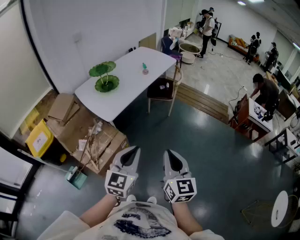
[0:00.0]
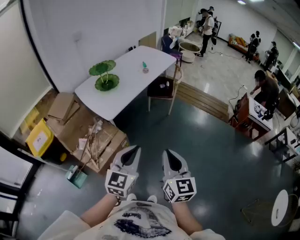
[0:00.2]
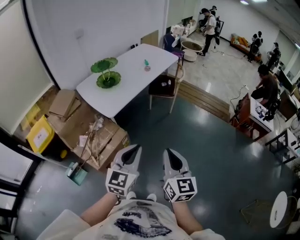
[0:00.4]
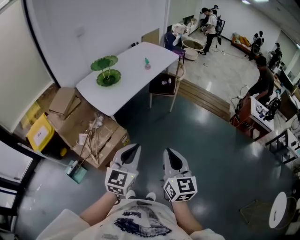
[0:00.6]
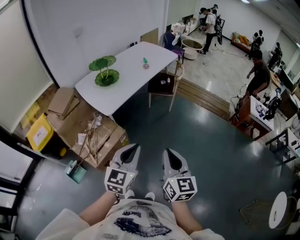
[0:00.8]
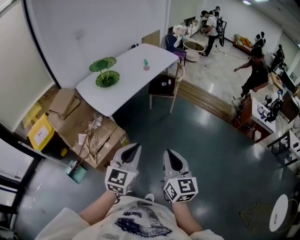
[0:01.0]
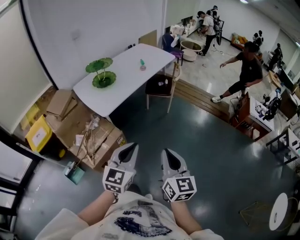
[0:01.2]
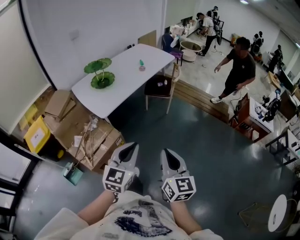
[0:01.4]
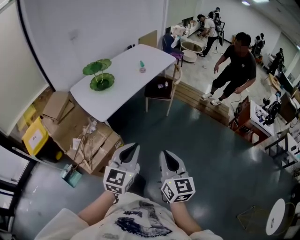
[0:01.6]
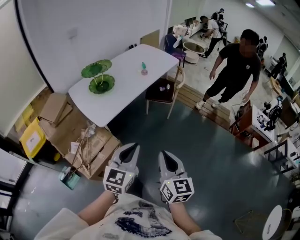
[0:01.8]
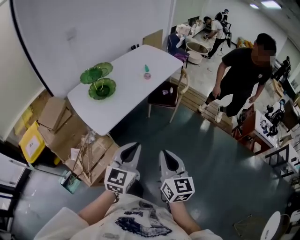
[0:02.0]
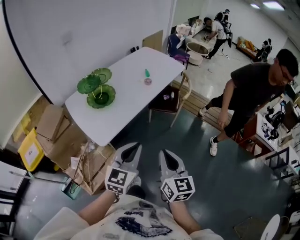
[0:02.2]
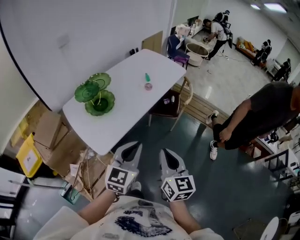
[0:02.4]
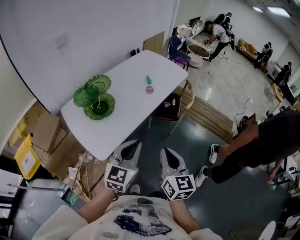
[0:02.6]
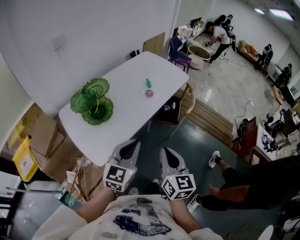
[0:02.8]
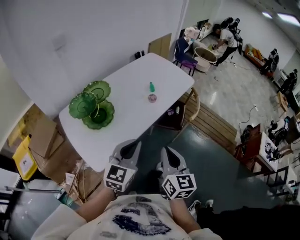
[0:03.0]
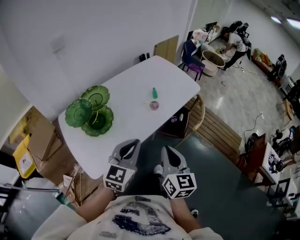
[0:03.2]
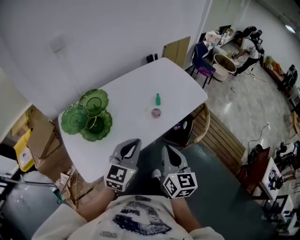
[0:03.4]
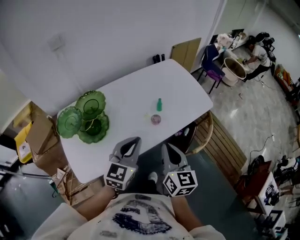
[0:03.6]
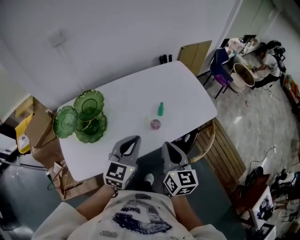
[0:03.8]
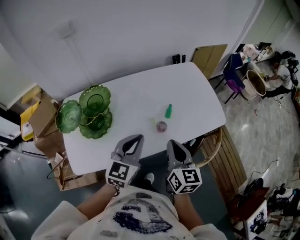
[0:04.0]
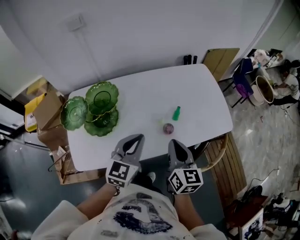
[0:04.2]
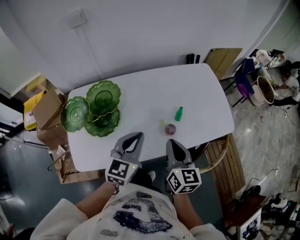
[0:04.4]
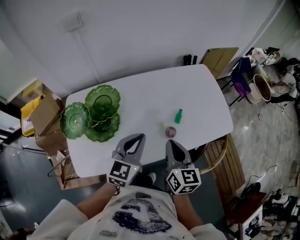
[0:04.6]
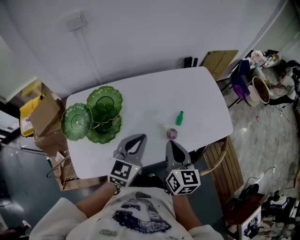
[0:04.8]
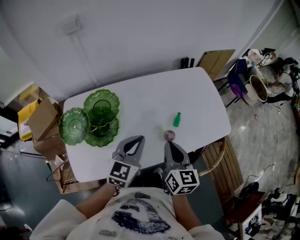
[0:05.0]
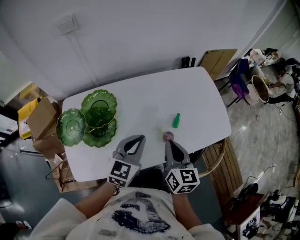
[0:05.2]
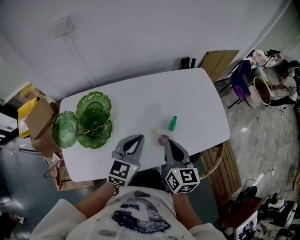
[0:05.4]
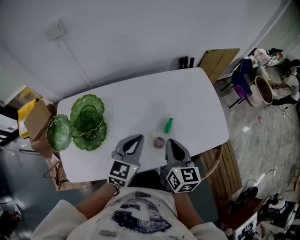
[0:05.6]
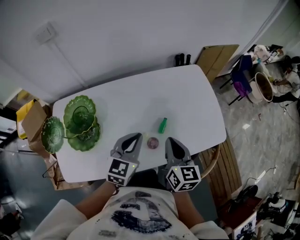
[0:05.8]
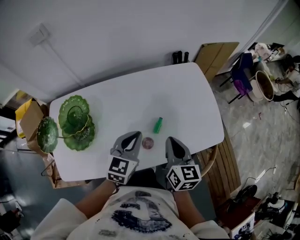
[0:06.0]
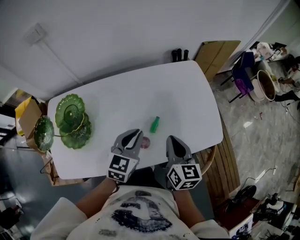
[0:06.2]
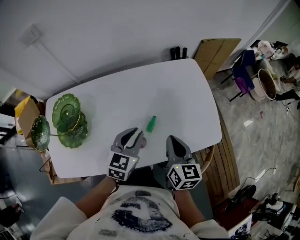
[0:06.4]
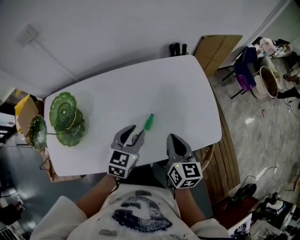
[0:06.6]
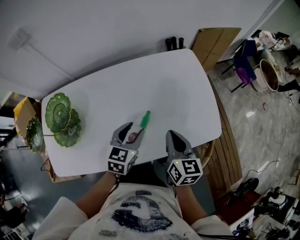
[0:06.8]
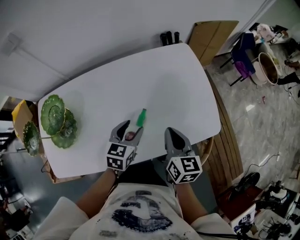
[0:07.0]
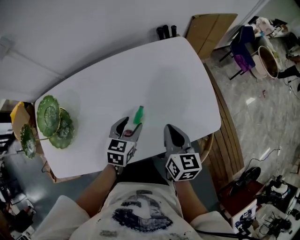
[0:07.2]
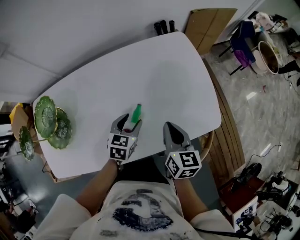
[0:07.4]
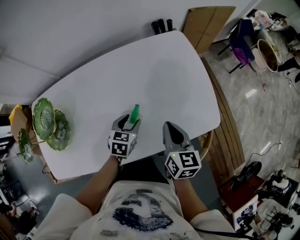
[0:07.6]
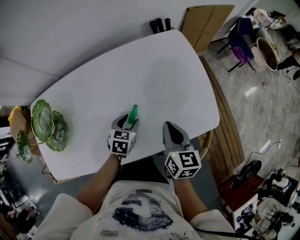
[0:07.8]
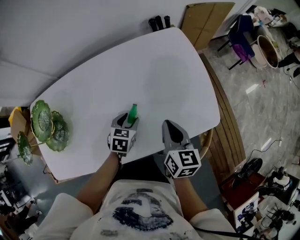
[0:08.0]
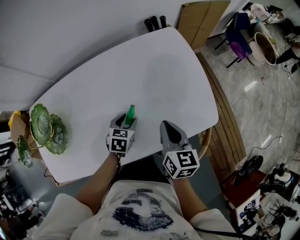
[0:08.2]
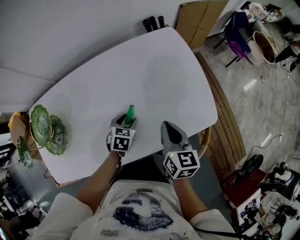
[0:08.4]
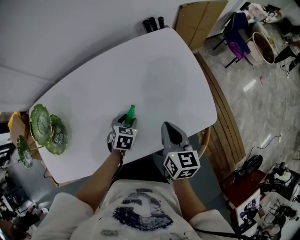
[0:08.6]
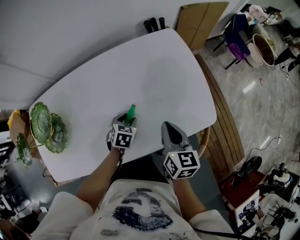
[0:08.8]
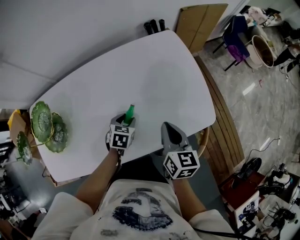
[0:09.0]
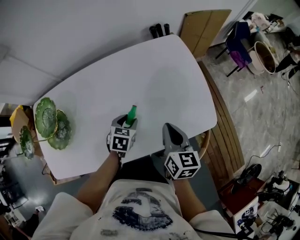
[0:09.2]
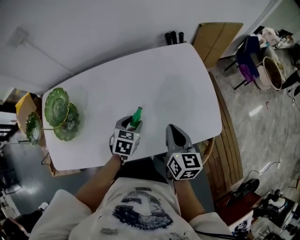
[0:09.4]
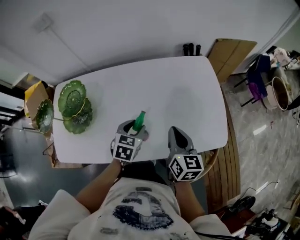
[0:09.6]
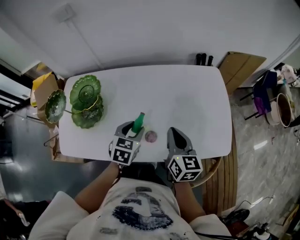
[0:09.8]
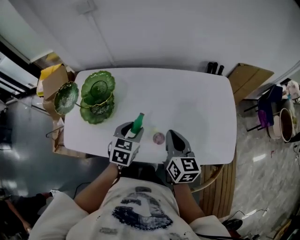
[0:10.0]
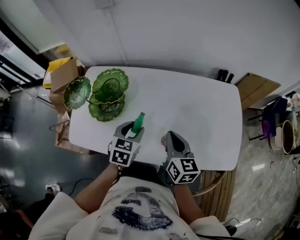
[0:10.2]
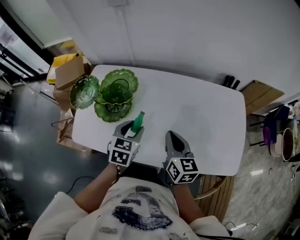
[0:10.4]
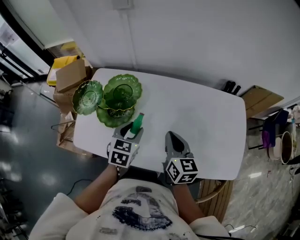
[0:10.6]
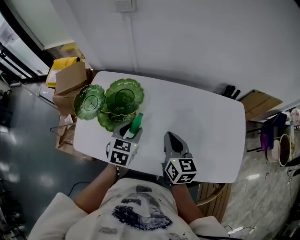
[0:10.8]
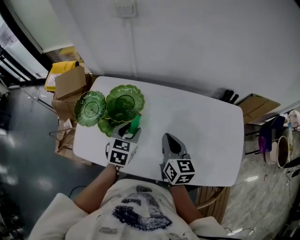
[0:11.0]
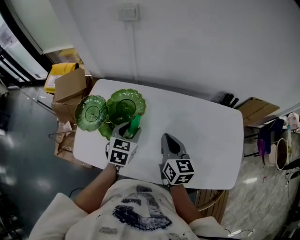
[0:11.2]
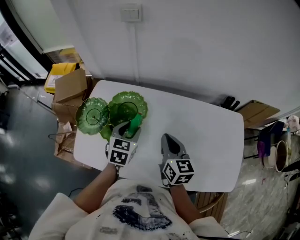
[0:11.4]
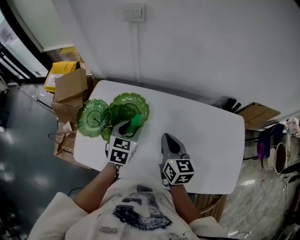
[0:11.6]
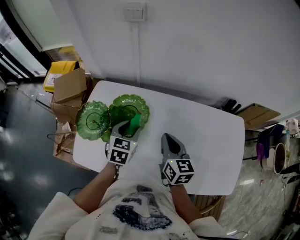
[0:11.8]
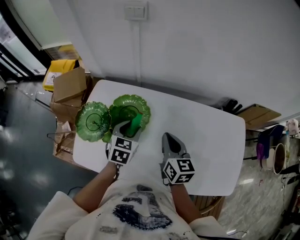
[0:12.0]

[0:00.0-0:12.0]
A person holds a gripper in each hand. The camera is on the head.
0:00.0 to 0:01.6: The left gripper travels forward by approximately 5 cm; the right gripper moves approximately 5 cm.
0:01.6 to 0:03.0: The two grippers travel together, forward, roughly 40 cm.
0:03.0 to 0:04.4: The left gripper moves approximately 30 cm, and rotates about 30 degrees, while the right gripper shifts by roughly 35 cm, and swivels about 30 degrees.
0:04.4 to 0:06.0: The left gripper travels forward, to the right and downward by some 15 cm, while the right gripper travels forward and to the right by roughly 15 cm.
0:06.0 to 0:07.6: The right gripper travels to the right and downward by approximately 15 cm. Meanwhile the left gripper travels downward and to the right by about 20 cm, changes its angle by some 30 degrees, and opens its fingers.
0:07.6 to 0:09.0: The grippers move only a little.
0:09.0 to 0:10.4: The right gripper ends up approximately 30 cm from where it was, and turns by some 30 degrees. Meanwhile the left gripper ends up some 30 cm from where it was, and turns by roughly 30 degrees.
0:10.4 to 0:12.0: Both grippers travel together forward and to the left, some 15 cm.

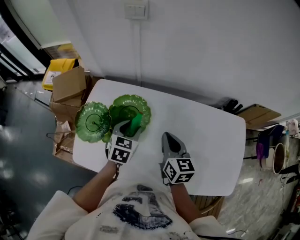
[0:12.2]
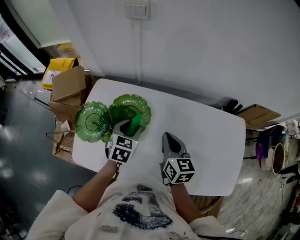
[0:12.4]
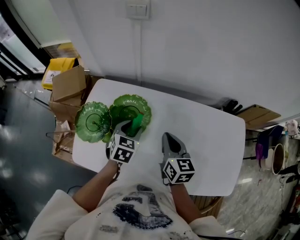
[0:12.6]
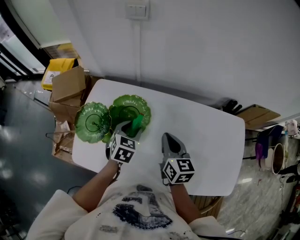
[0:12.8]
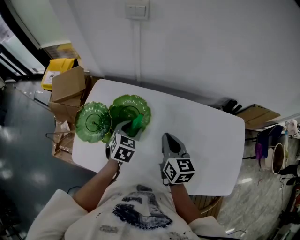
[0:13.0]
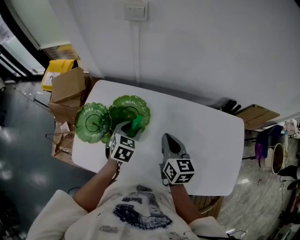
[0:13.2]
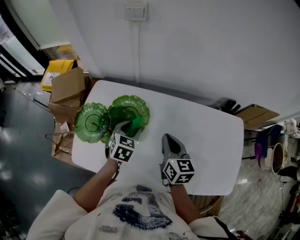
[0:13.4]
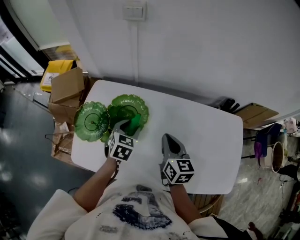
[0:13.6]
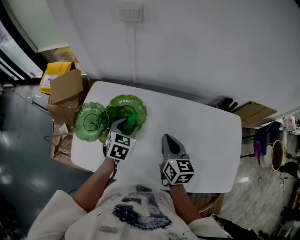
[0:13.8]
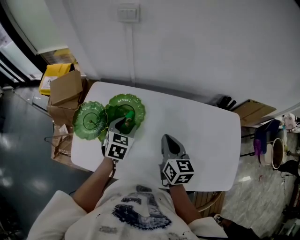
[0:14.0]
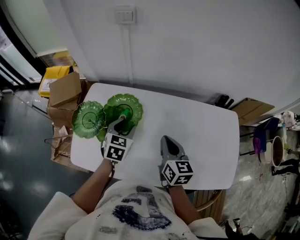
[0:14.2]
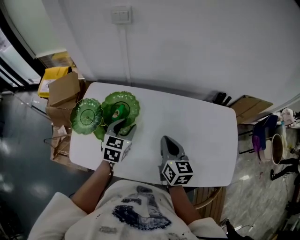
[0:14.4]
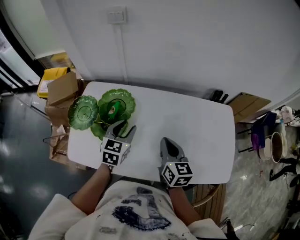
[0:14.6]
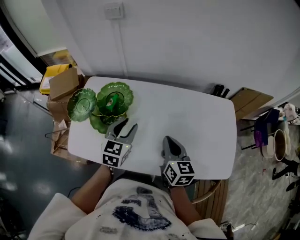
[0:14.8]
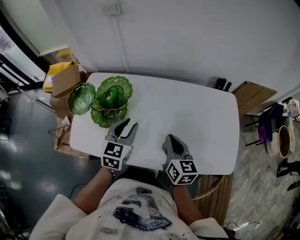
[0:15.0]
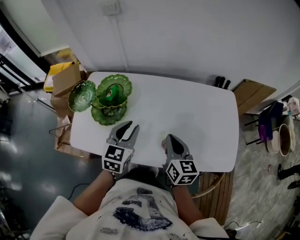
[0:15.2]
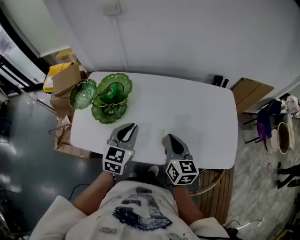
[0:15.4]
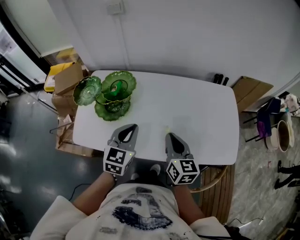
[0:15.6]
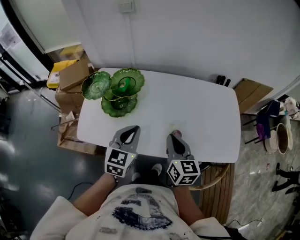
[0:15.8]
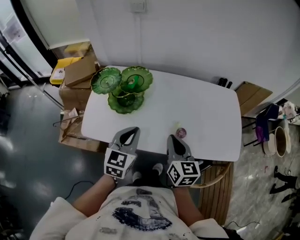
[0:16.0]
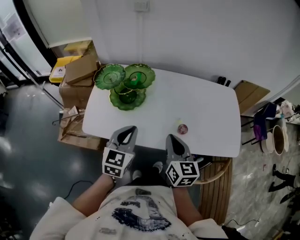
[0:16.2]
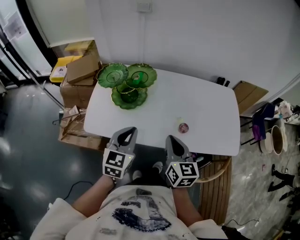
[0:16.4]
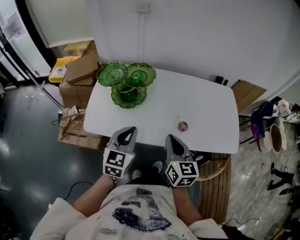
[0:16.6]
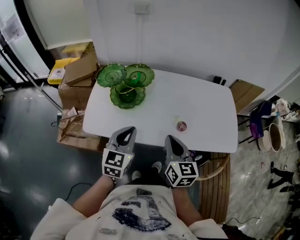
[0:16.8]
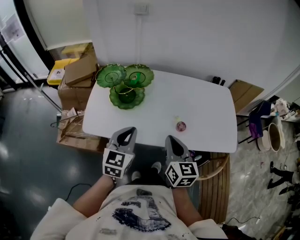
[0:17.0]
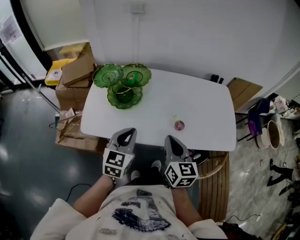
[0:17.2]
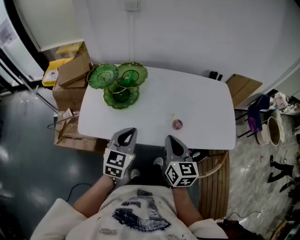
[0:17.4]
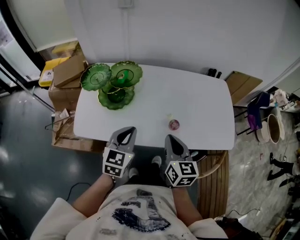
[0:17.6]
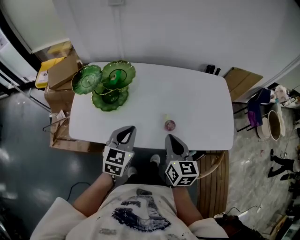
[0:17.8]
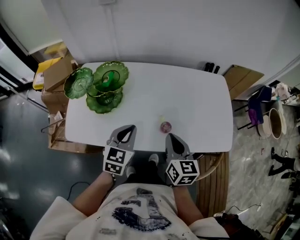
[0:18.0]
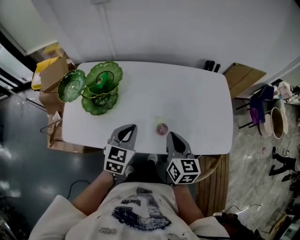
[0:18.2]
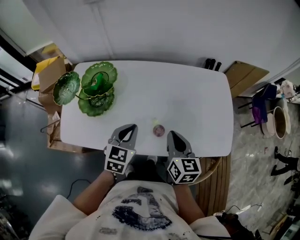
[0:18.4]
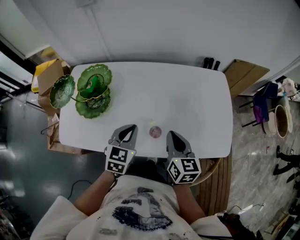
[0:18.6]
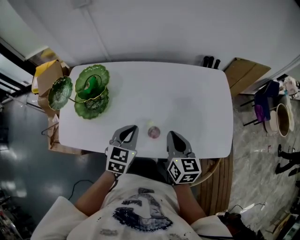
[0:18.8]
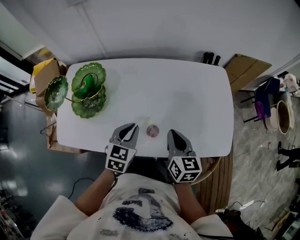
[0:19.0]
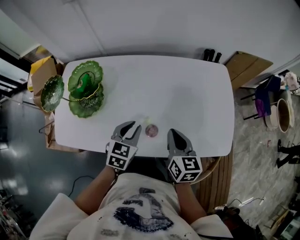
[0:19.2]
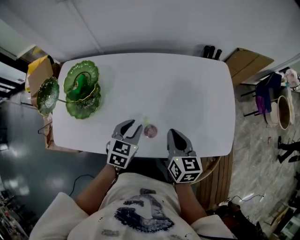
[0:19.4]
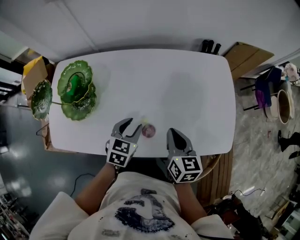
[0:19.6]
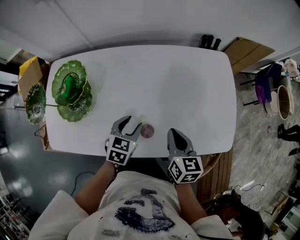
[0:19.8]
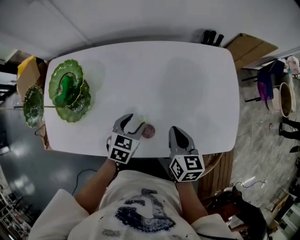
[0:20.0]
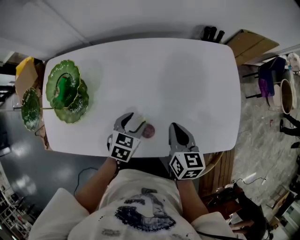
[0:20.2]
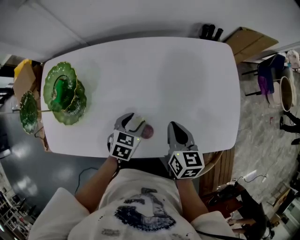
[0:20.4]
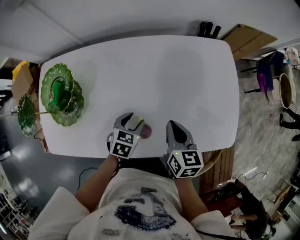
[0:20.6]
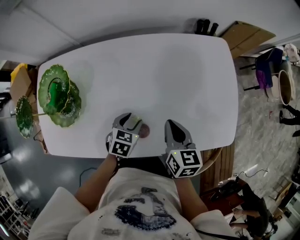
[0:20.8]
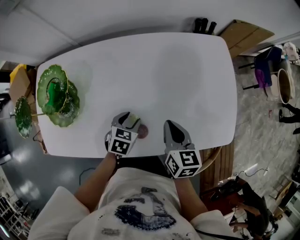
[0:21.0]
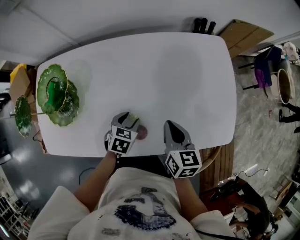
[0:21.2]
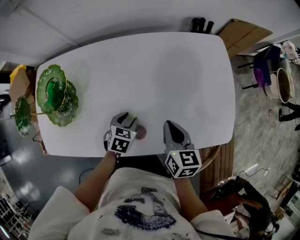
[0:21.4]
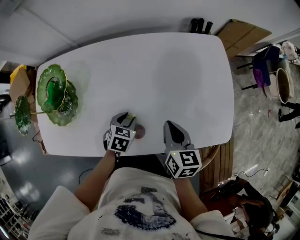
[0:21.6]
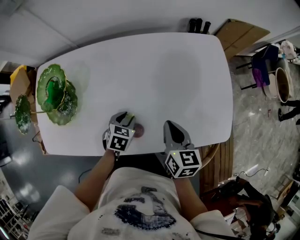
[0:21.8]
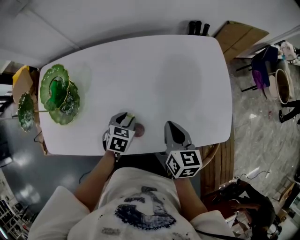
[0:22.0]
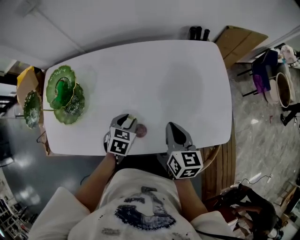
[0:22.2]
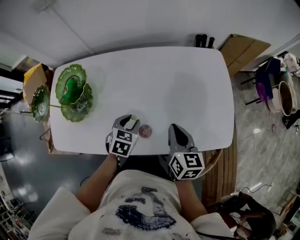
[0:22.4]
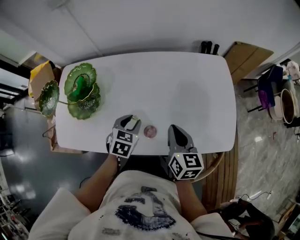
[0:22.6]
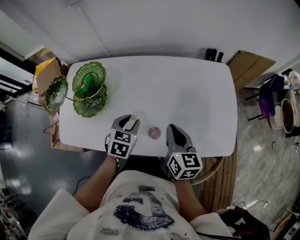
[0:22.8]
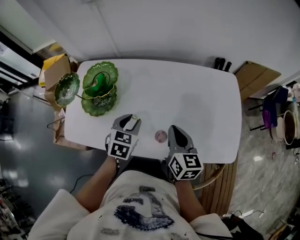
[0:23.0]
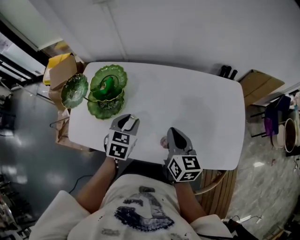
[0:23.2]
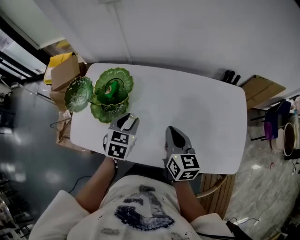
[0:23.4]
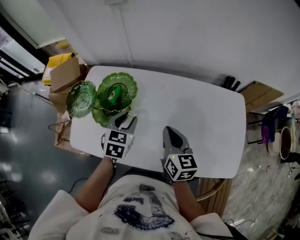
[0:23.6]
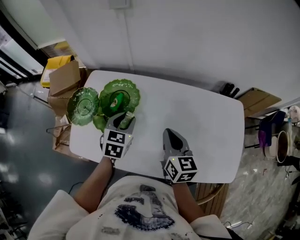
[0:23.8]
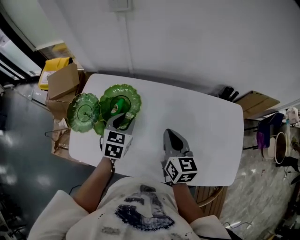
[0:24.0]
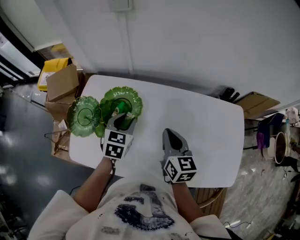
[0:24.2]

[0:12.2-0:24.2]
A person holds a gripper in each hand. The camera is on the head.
0:12.2 to 0:13.8: The grippers stay close to where they were, moving slightly.
0:13.8 to 0:15.2: The left gripper goes some 20 cm backward, to the right and upward. The right gripper moves backward and to the right, some 20 cm.
0:15.2 to 0:16.6: The grippers both shift backward and to the left by about 20 cm. The left gripper closes.
0:16.6 to 0:18.2: The right gripper shifts approximately 20 cm to the right and forward. The left gripper is displaced to the right, forward and downward by about 20 cm.
0:18.2 to 0:19.8: Both grippers move downward, to the right and forward, about 15 cm. The left gripper opens its fingers.
0:19.8 to 0:21.2: The left gripper goes roughly 10 cm downward.
0:21.2 to 0:22.6: The right gripper travels upward by about 5 cm; the left gripper goes some 10 cm upward.
0:22.6 to 0:24.2: The left gripper moves to the left, forward and upward, about 25 cm, while the right gripper travels to the left and forward by about 25 cm.
